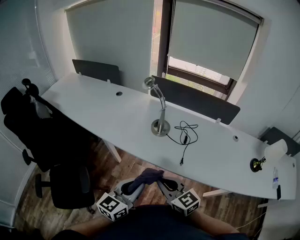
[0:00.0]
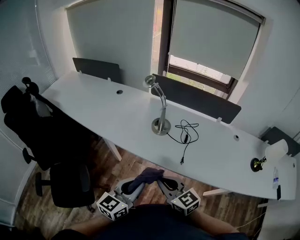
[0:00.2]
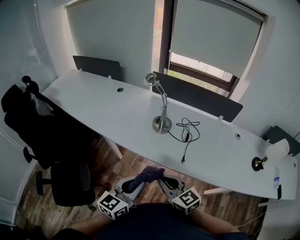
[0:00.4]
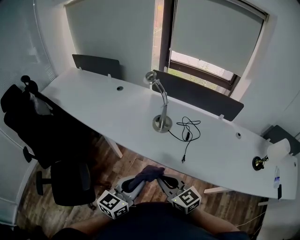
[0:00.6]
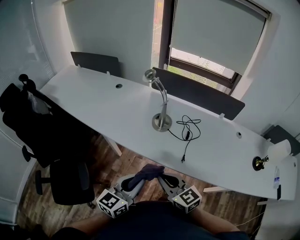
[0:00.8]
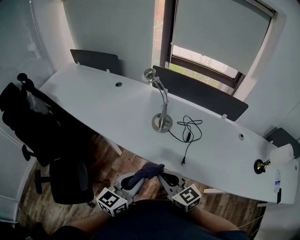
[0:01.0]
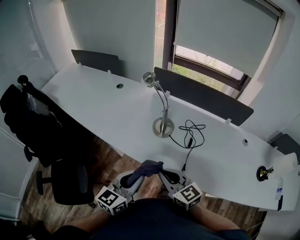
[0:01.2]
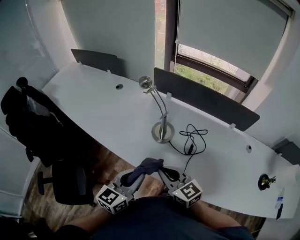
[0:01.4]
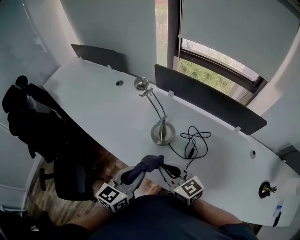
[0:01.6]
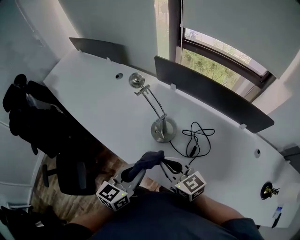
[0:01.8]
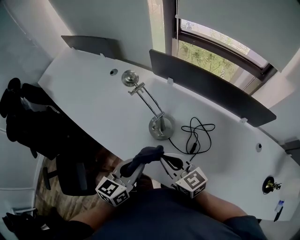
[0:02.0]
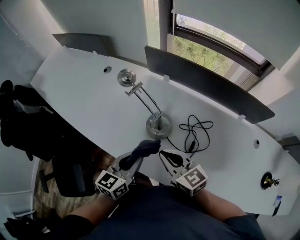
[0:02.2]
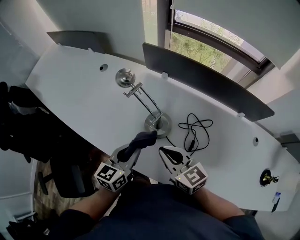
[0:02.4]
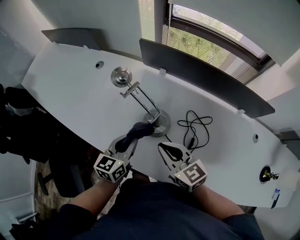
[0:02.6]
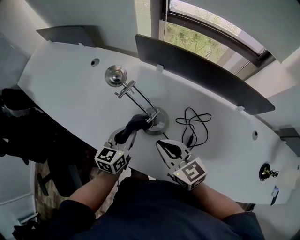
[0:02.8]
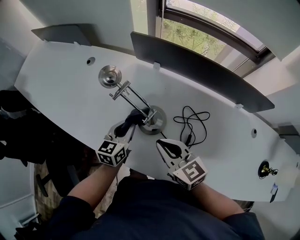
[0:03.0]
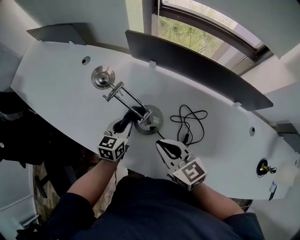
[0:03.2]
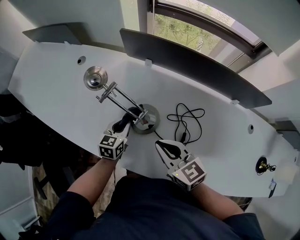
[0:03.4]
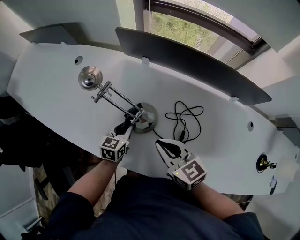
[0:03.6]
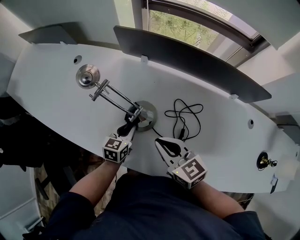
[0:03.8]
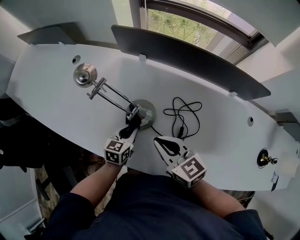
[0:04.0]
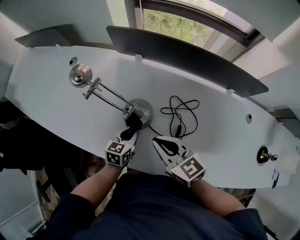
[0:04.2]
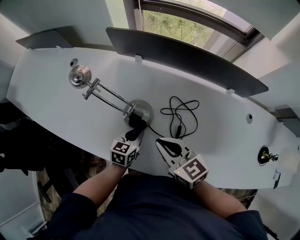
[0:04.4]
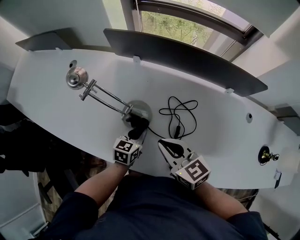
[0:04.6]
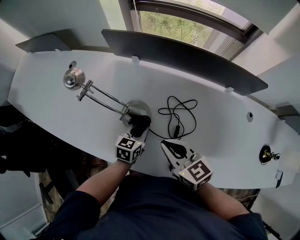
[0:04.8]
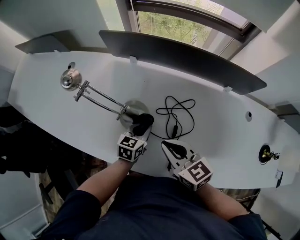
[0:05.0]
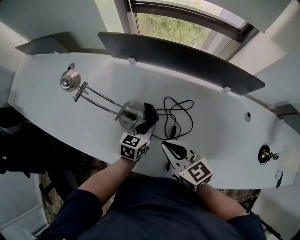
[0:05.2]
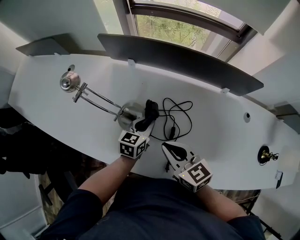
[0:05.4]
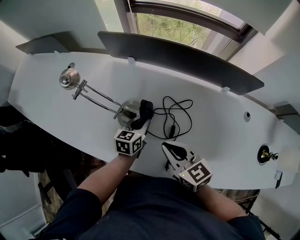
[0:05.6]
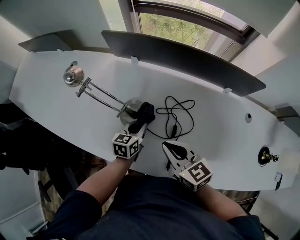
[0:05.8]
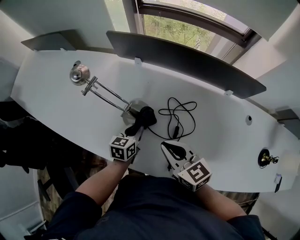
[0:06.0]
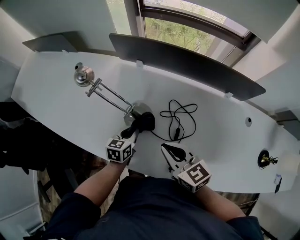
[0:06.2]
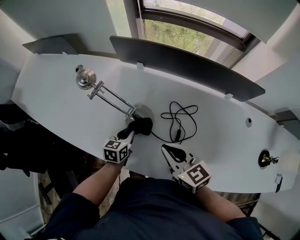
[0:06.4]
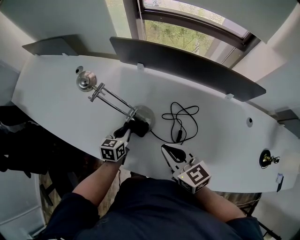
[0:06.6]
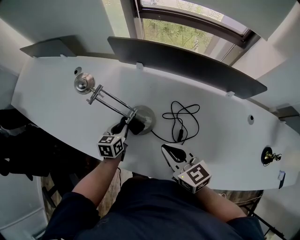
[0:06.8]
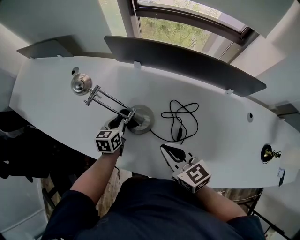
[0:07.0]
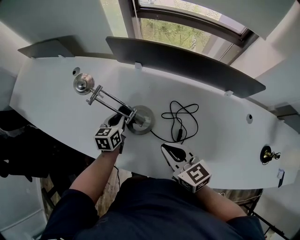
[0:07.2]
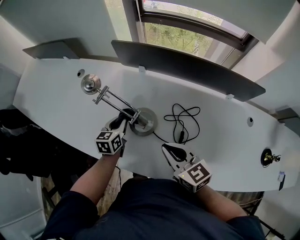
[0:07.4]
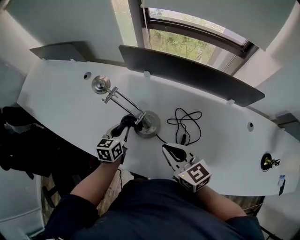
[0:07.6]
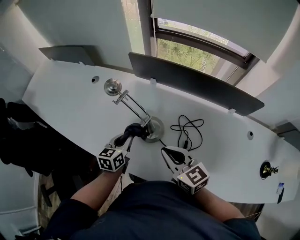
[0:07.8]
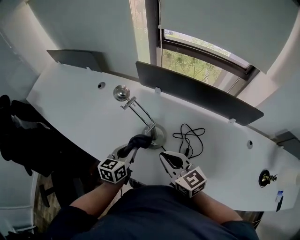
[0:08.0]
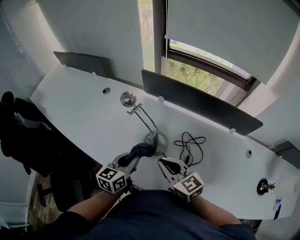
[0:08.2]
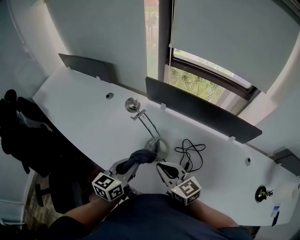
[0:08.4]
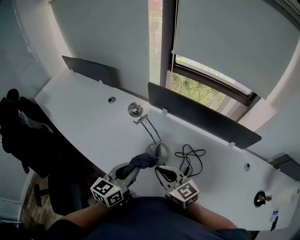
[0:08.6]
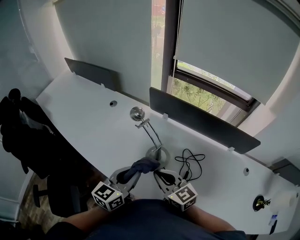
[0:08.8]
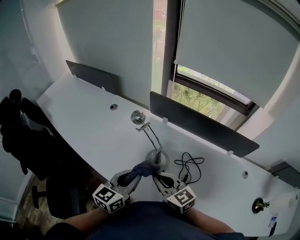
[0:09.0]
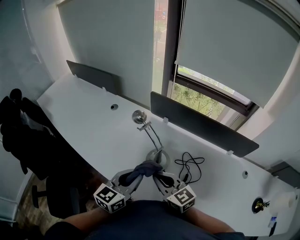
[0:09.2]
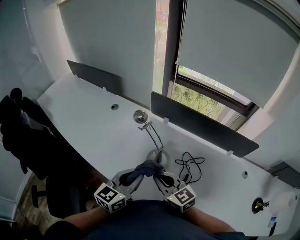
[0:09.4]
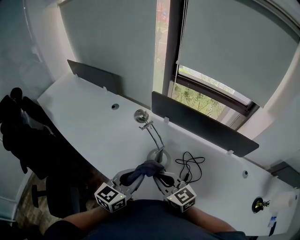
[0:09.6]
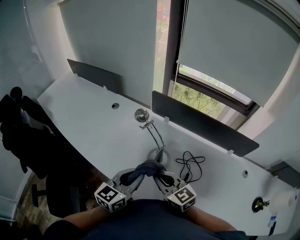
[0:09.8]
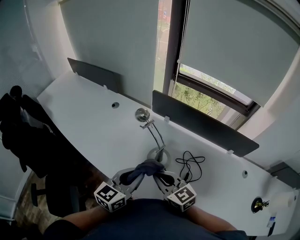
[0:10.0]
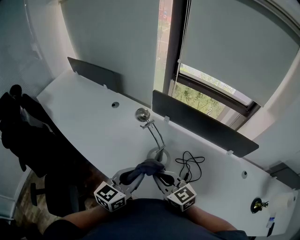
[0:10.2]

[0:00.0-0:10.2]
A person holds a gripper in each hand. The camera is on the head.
0:00.0 to 0:01.4: The grippers both shift forward by some 20 cm.
0:01.4 to 0:03.0: The right gripper moves forward, approximately 15 cm; the left gripper is displaced forward and downward by approximately 30 cm.
0:03.0 to 0:04.4: The left gripper travels to the right, downward and backward by approximately 15 cm. Meanwhile the right gripper moves to the right, approximately 5 cm.
0:04.4 to 0:05.8: The right gripper moves roughly 5 cm.
0:05.8 to 0:07.2: The left gripper goes some 15 cm to the left and forward.
0:07.2 to 0:08.8: The left gripper moves upward and backward, roughly 30 cm, and changes its angle by approximately 20 degrees. Meanwhile the right gripper is displaced to the left and upward by roughly 10 cm.
0:08.8 to 0:10.2: The grippers make only small movements.

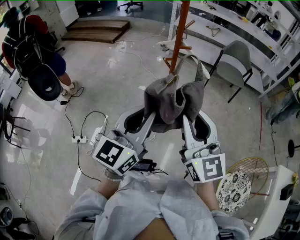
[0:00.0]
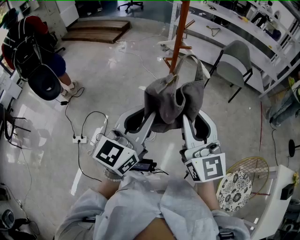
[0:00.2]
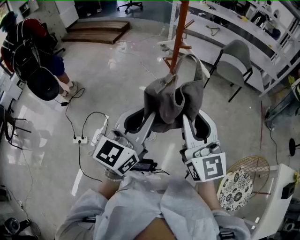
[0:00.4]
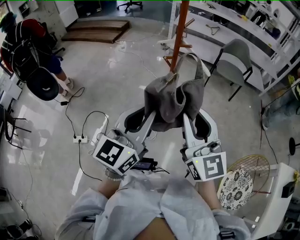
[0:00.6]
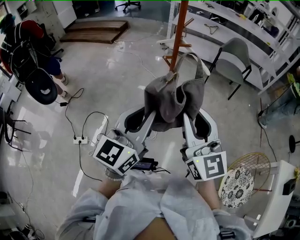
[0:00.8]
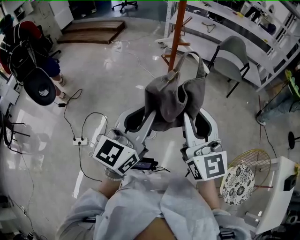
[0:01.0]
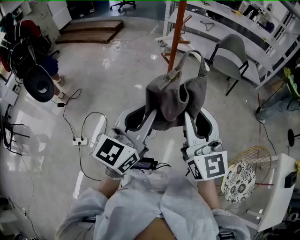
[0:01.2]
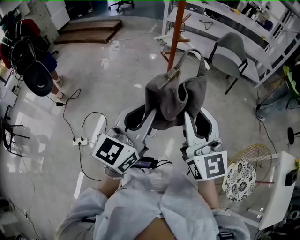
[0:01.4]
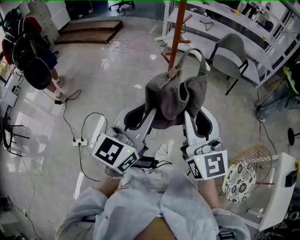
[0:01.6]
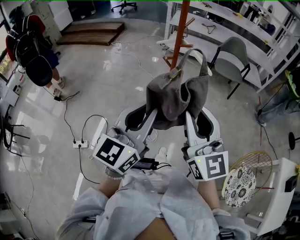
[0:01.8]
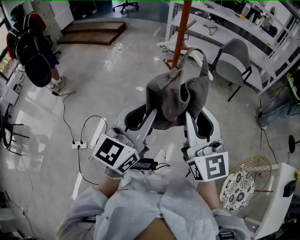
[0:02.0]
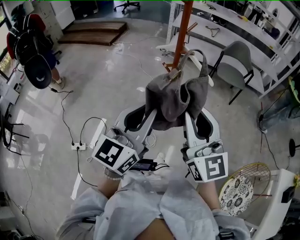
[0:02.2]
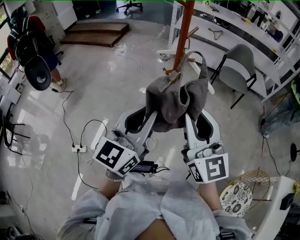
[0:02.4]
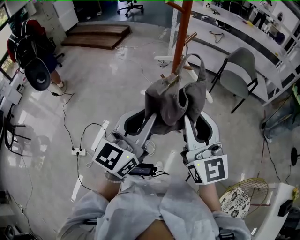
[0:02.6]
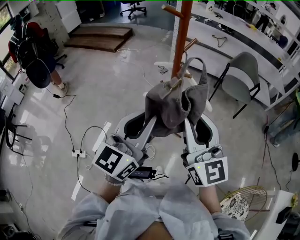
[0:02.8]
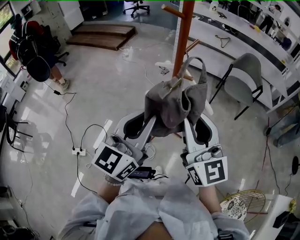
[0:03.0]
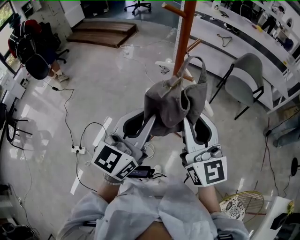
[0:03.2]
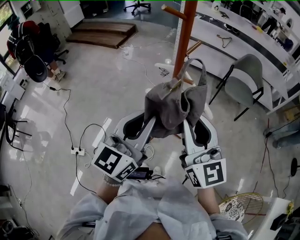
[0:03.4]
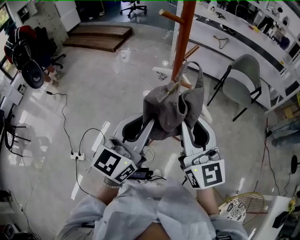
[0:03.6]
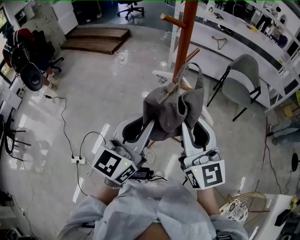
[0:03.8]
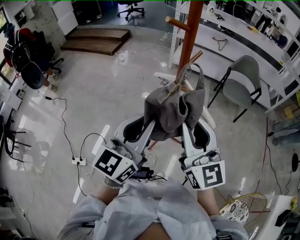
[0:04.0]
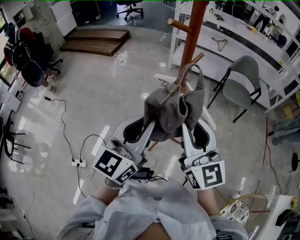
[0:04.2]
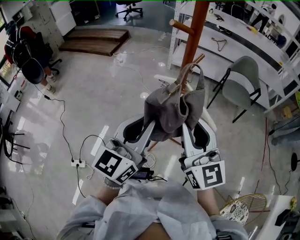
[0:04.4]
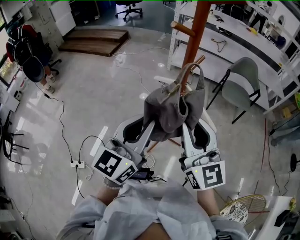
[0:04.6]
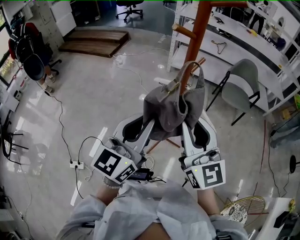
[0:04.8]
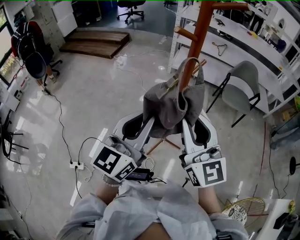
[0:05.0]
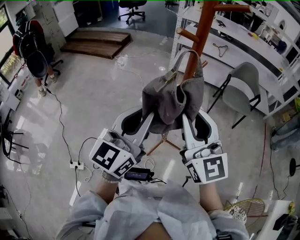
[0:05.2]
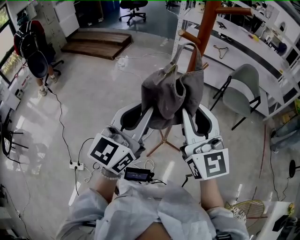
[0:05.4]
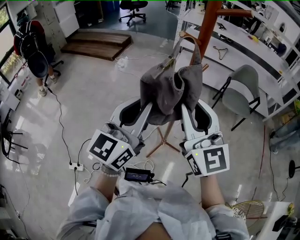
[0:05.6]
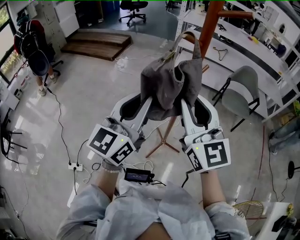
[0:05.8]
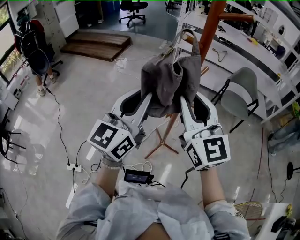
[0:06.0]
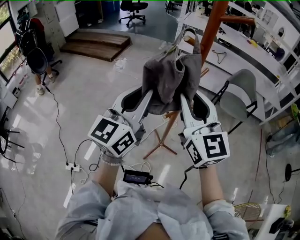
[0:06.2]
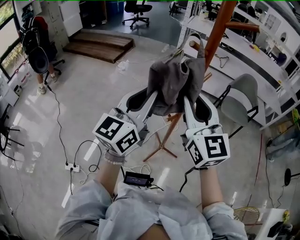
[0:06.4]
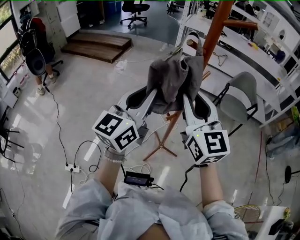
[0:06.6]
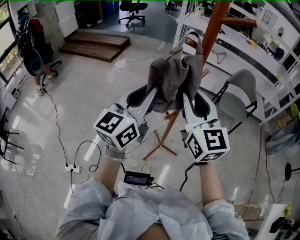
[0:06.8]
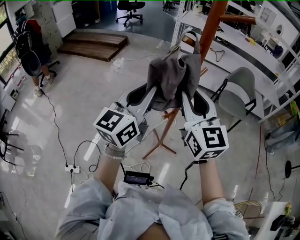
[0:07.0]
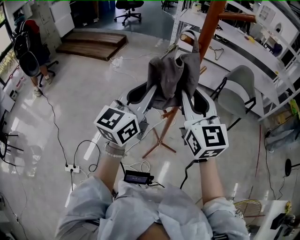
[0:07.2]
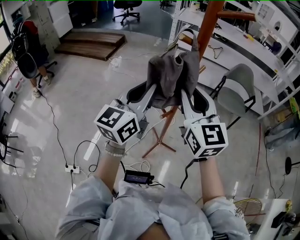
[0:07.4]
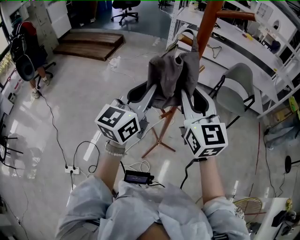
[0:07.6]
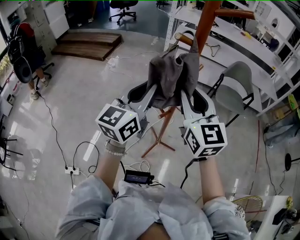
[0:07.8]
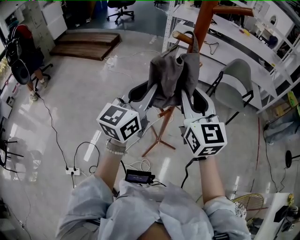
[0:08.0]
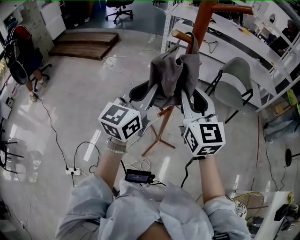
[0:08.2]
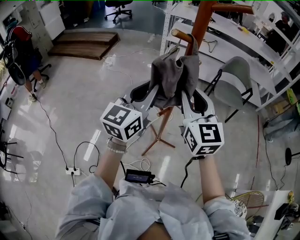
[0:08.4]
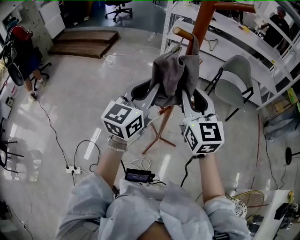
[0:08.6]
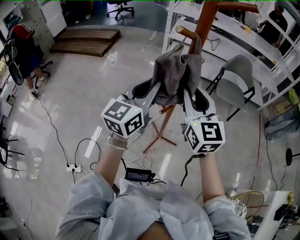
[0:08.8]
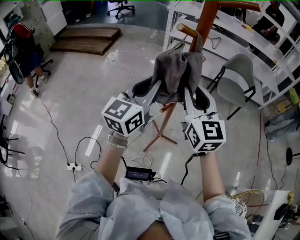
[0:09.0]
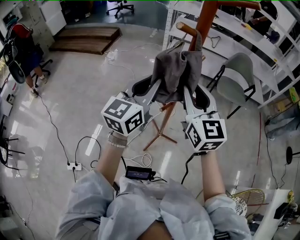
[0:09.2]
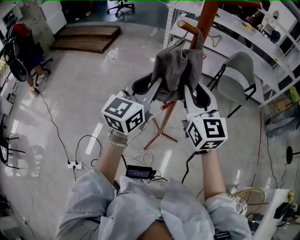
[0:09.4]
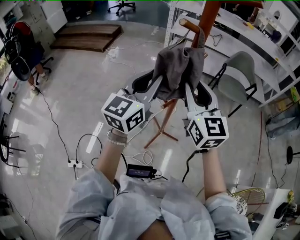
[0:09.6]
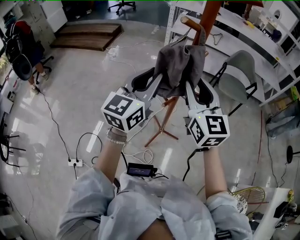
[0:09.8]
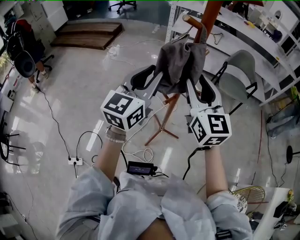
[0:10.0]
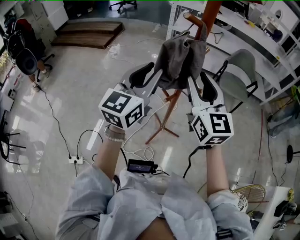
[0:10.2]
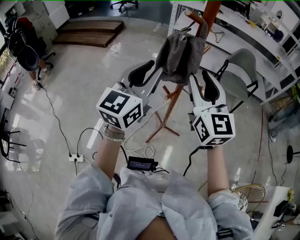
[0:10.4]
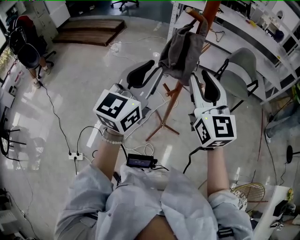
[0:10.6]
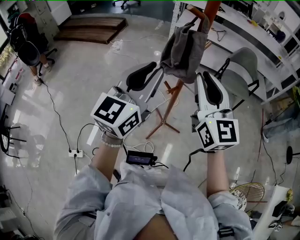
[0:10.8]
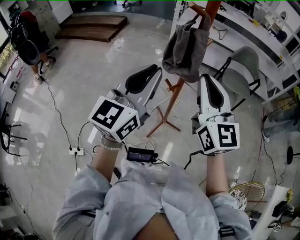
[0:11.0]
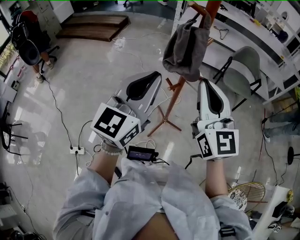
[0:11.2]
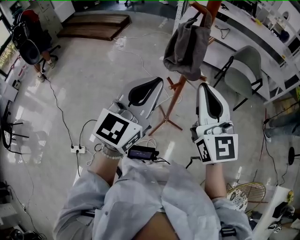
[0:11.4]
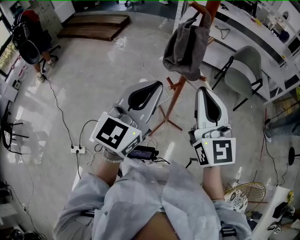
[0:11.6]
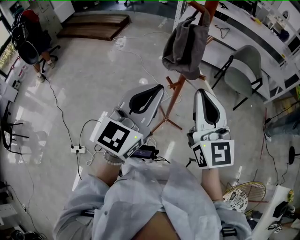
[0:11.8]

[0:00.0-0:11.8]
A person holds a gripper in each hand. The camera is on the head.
0:00.0 to 0:01.4: There are only small adjustments of the grippers.
0:01.4 to 0:03.0: The grippers both shift forward by roughly 20 cm.
0:03.0 to 0:04.4: Both grippers travel together forward, roughly 5 cm.
0:04.4 to 0:06.0: The two grippers go some 10 cm forward and upward.
0:06.0 to 0:07.4: The grippers both shift forward by some 5 cm.
0:07.4 to 0:08.8: The grippers make only small movements.
0:08.8 to 0:10.4: The left gripper changes place by approximately 5 cm.
0:10.4 to 0:11.8: Both grippers move backward, roughly 10 cm. The right gripper closes up.

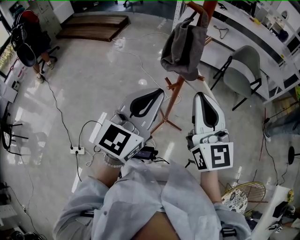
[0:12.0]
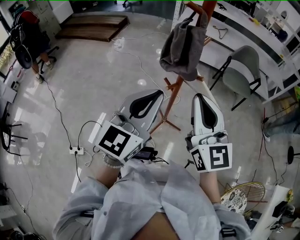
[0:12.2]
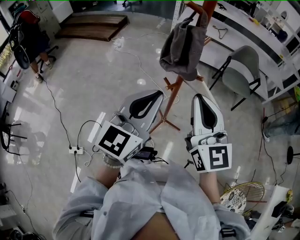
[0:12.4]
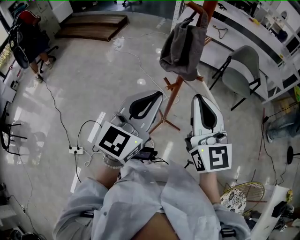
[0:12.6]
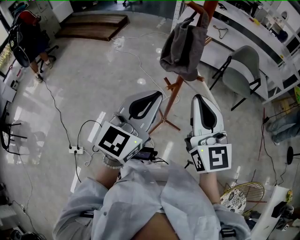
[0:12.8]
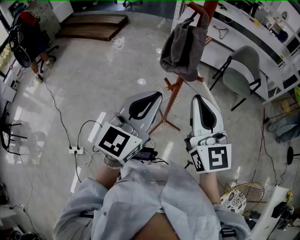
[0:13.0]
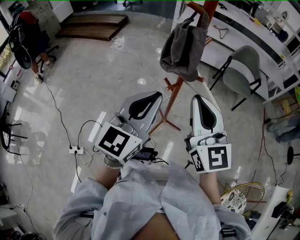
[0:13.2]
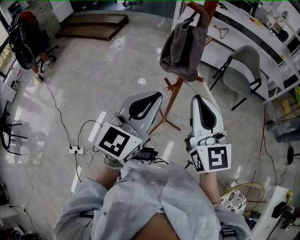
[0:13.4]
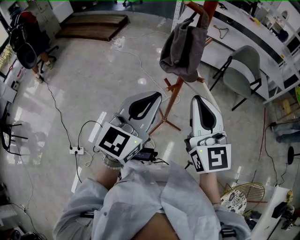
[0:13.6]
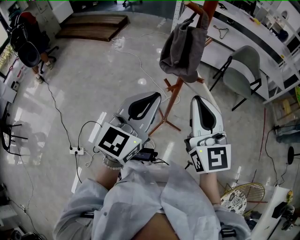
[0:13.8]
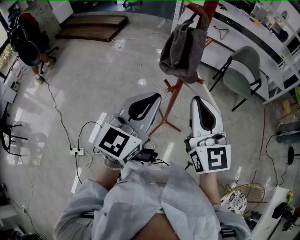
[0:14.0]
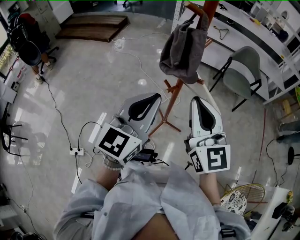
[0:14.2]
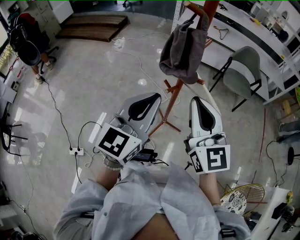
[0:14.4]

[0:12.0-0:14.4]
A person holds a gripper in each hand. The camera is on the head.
0:12.0 to 0:13.2: Neither gripper changes place.
0:13.2 to 0:14.4: The two grippers keep their place.
